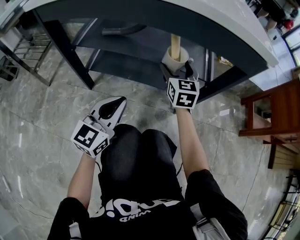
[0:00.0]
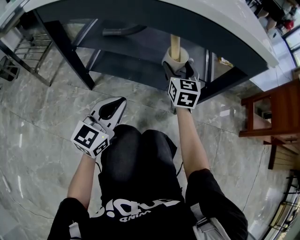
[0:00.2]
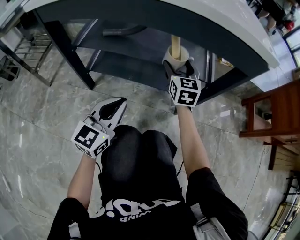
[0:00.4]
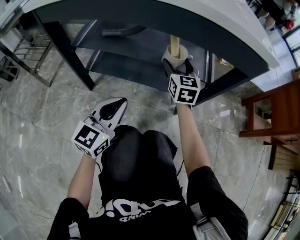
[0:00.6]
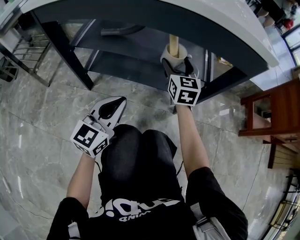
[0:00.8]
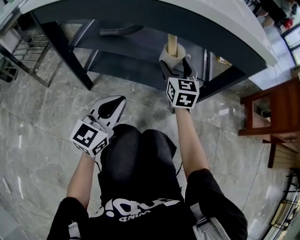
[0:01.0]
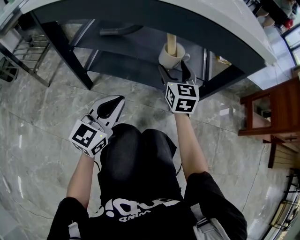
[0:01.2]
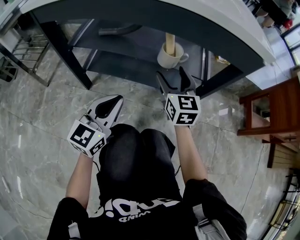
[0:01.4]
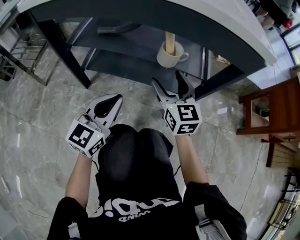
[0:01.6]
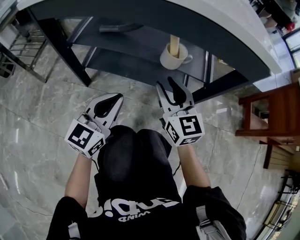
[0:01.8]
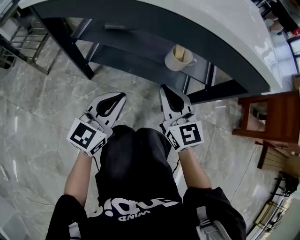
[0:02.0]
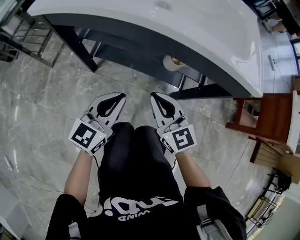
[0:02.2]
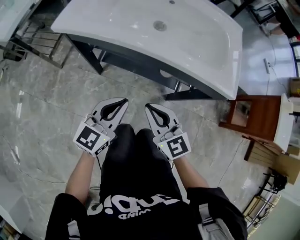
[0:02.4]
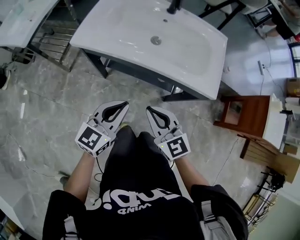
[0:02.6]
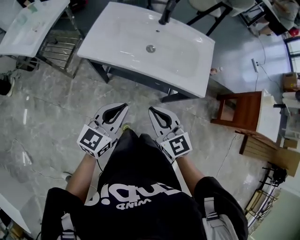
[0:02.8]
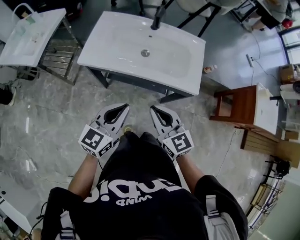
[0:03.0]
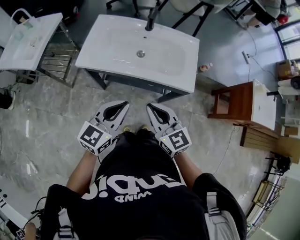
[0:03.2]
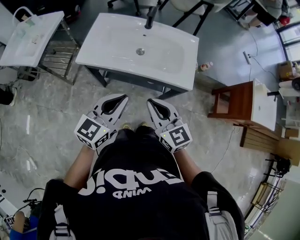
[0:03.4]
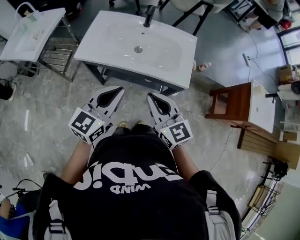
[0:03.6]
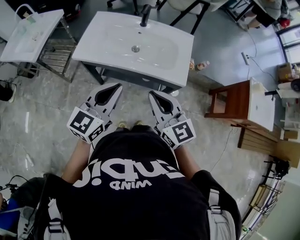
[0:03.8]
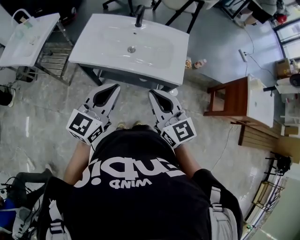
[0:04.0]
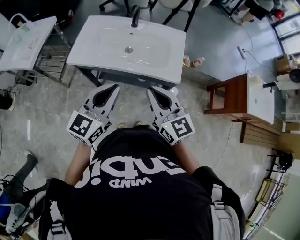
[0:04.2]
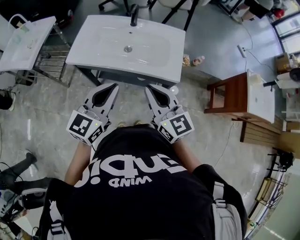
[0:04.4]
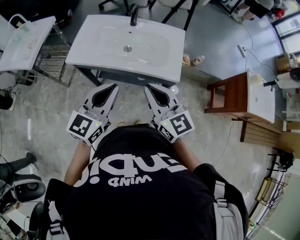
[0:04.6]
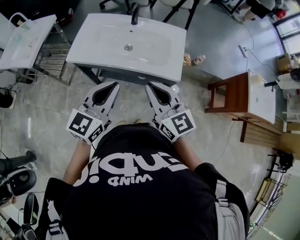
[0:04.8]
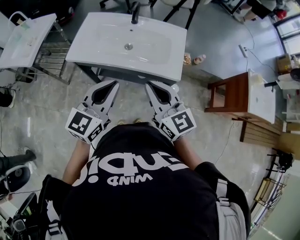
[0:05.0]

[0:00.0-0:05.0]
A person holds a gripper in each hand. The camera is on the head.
0:00.0 to 0:01.6: The right gripper moves backward, roughly 10 cm.
0:01.6 to 0:03.4: Both grippers move upward, approximately 50 cm. The right gripper closes its fingers.
0:03.4 to 0:05.0: The left gripper changes place by some 5 cm. The right gripper shifts roughly 10 cm to the right and upward.

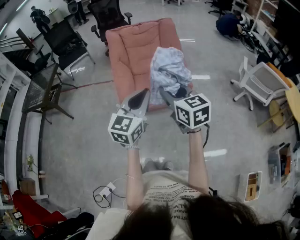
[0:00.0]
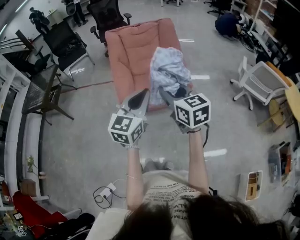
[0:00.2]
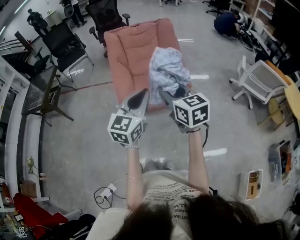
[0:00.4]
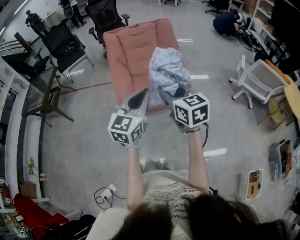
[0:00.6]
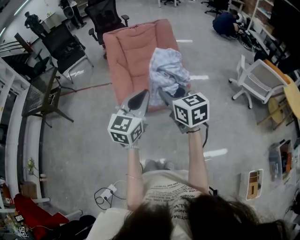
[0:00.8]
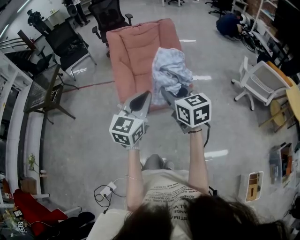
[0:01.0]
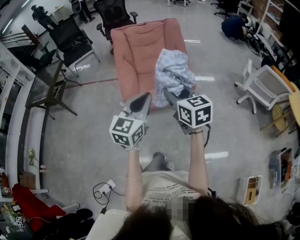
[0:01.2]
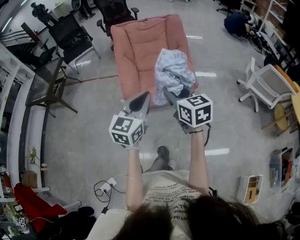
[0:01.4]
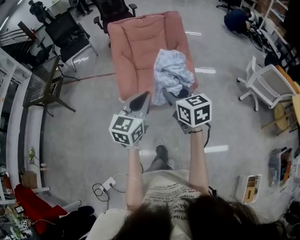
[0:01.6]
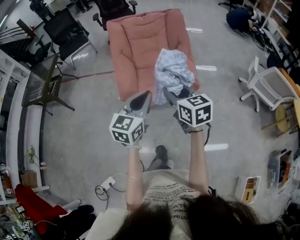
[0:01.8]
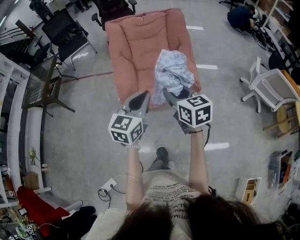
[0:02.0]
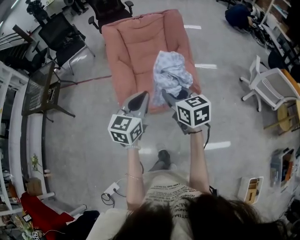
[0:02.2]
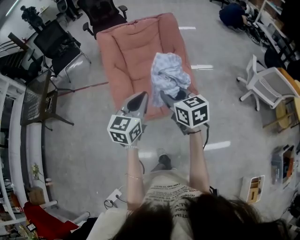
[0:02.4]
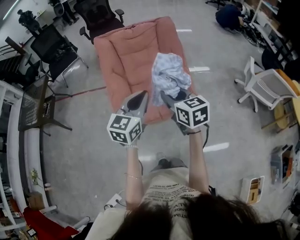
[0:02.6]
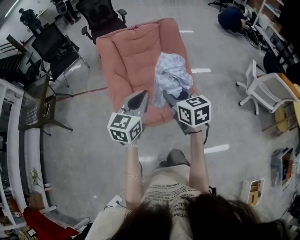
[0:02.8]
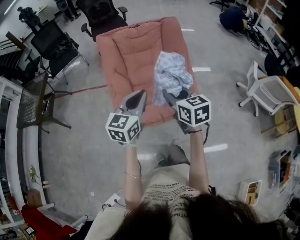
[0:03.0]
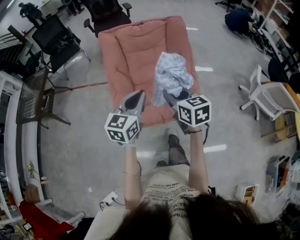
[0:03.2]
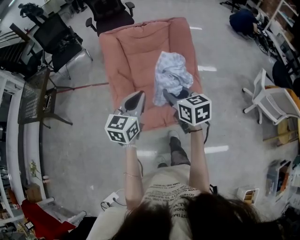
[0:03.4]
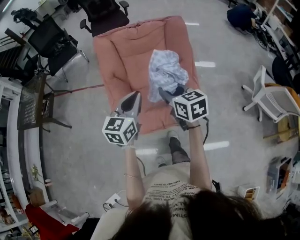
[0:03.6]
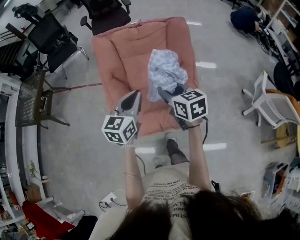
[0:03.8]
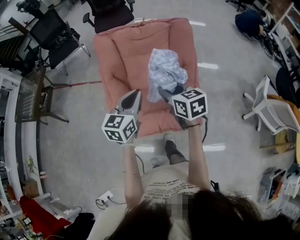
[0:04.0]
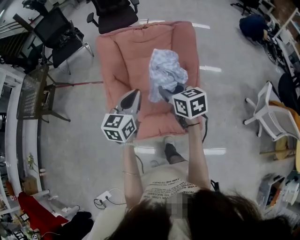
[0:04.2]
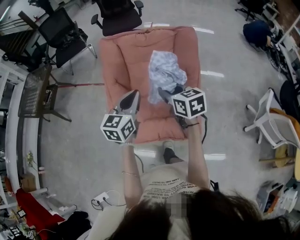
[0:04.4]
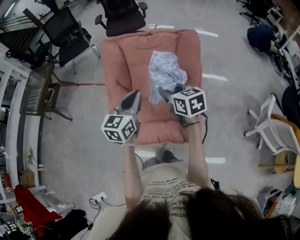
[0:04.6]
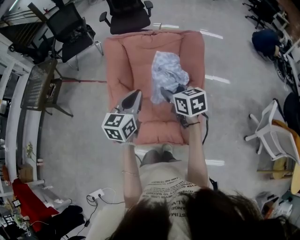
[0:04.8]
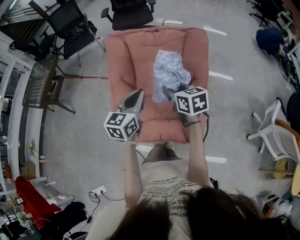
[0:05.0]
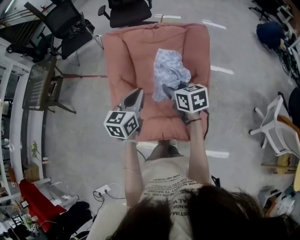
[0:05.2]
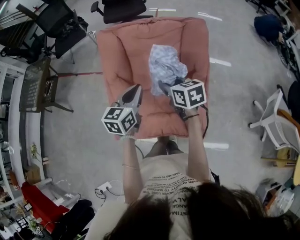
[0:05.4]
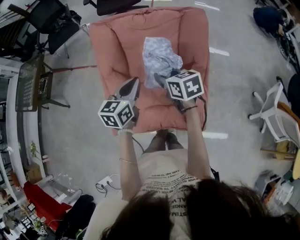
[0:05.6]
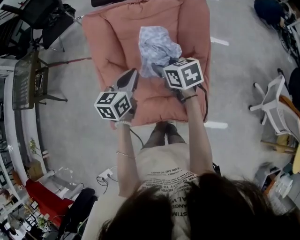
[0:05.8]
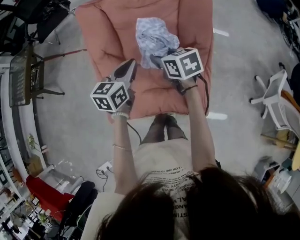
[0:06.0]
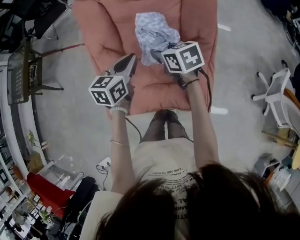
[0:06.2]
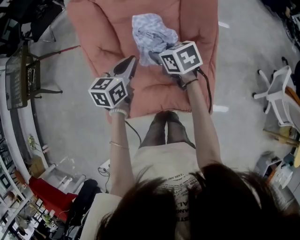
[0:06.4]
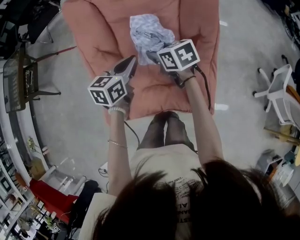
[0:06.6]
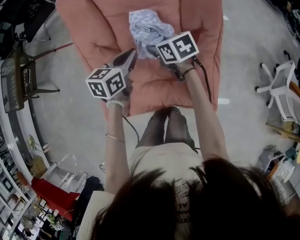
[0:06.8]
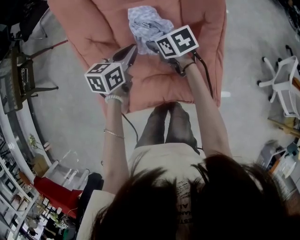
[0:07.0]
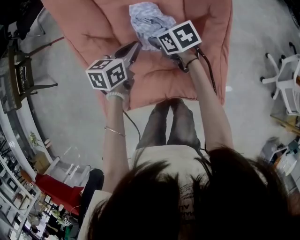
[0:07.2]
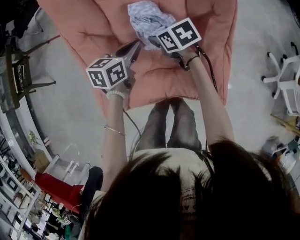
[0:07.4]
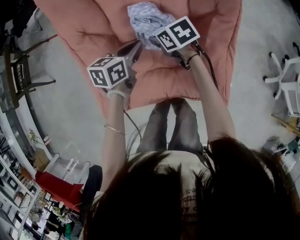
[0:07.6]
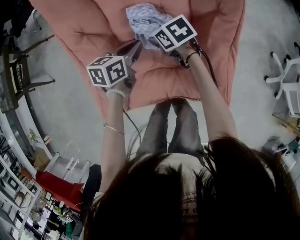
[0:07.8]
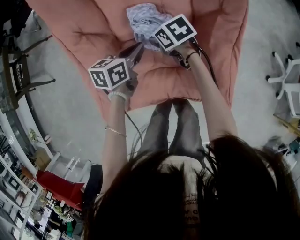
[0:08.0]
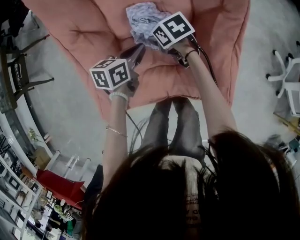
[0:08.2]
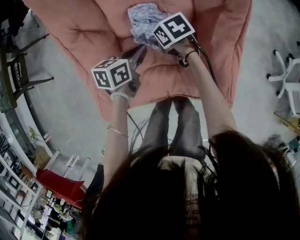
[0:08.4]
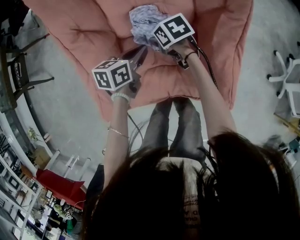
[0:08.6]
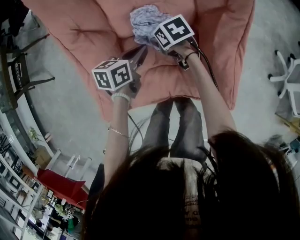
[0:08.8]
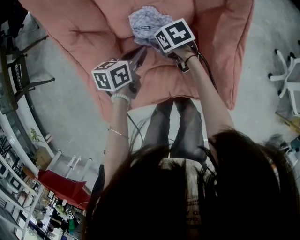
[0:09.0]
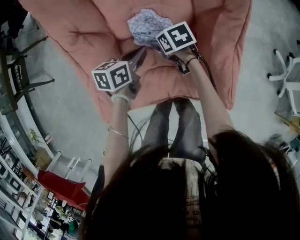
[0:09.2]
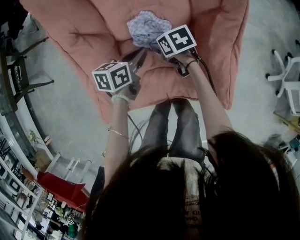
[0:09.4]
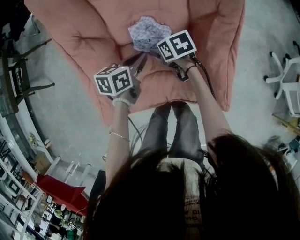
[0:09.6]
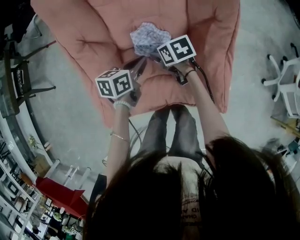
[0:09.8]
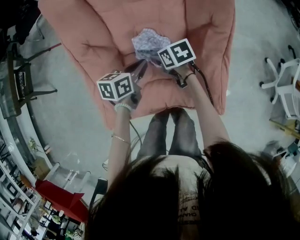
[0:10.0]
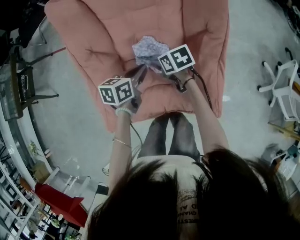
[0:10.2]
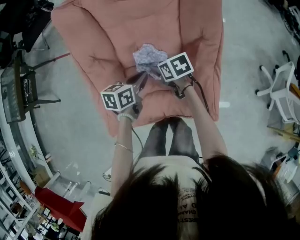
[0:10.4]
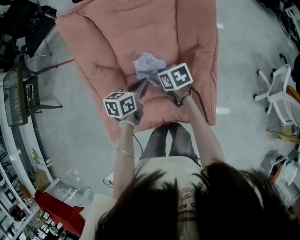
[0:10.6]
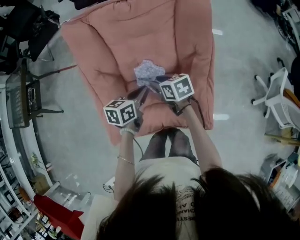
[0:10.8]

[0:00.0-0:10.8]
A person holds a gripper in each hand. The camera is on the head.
0:00.0 to 0:01.6: The right gripper changes place by some 5 cm; the left gripper changes place by some 5 cm.
0:01.6 to 0:03.0: Both grippers move forward, roughly 20 cm.
0:03.0 to 0:04.6: The grippers both shift forward by approximately 20 cm.
0:04.6 to 0:06.2: Both grippers move downward and forward, approximately 20 cm.
0:06.2 to 0:07.8: Both grippers move downward, approximately 20 cm.
0:07.8 to 0:09.2: The right gripper is displaced downward by roughly 5 cm, and opens its fingers; the left gripper moves roughly 5 cm.
0:09.2 to 0:10.8: Both grippers move upward, some 15 cm. The right gripper closes.

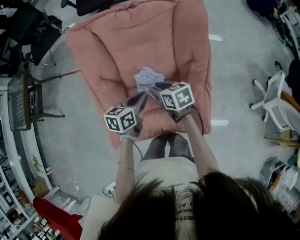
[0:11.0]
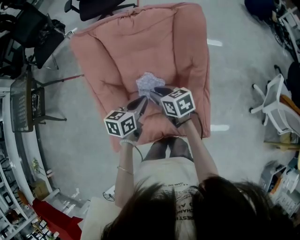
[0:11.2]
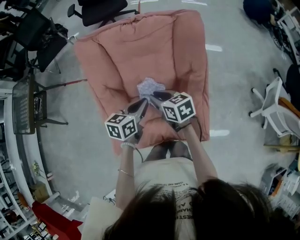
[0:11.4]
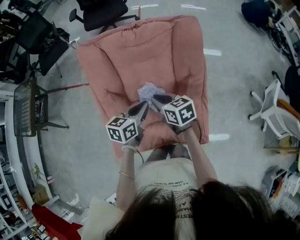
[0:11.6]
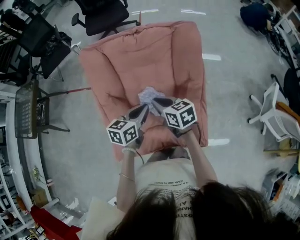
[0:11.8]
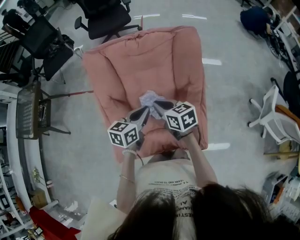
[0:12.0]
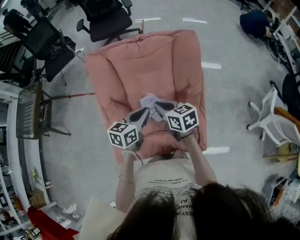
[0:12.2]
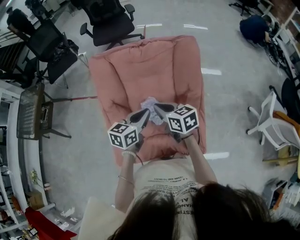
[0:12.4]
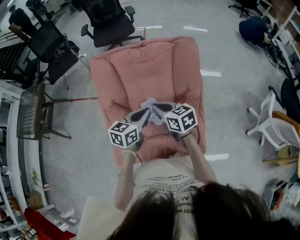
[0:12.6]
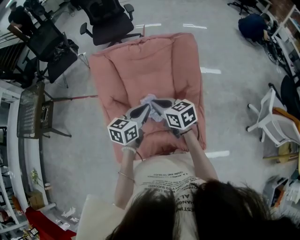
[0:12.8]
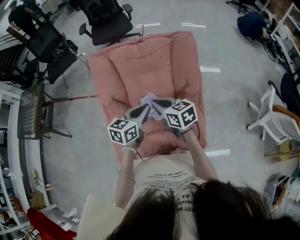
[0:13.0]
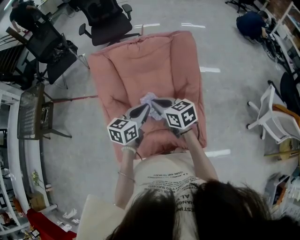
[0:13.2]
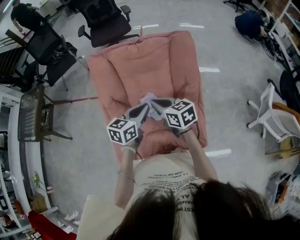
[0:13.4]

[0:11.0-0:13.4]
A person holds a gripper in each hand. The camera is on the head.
0:11.0 to 0:12.2: Both grippers travel together upward, about 10 cm. The right gripper closes.
0:12.2 to 0:13.4: The grippers make only small movements.

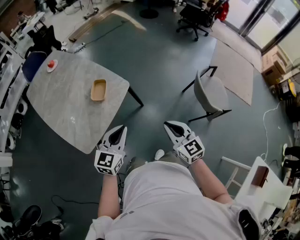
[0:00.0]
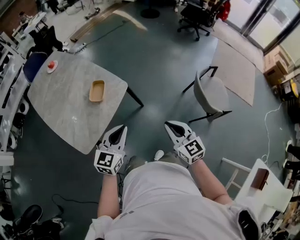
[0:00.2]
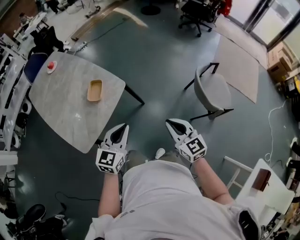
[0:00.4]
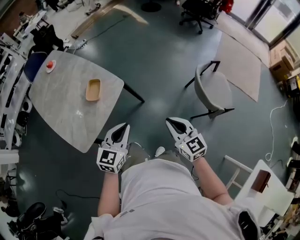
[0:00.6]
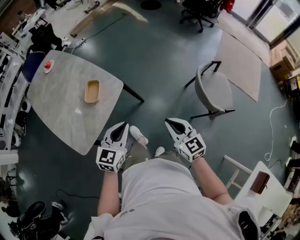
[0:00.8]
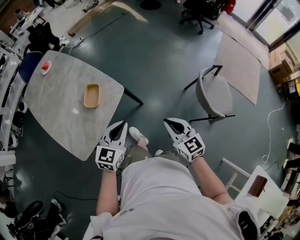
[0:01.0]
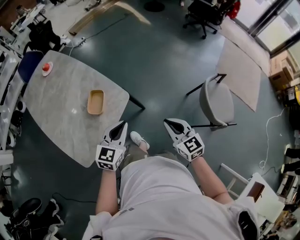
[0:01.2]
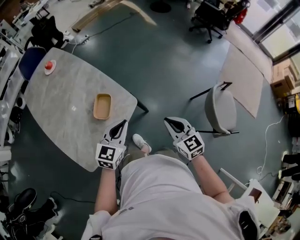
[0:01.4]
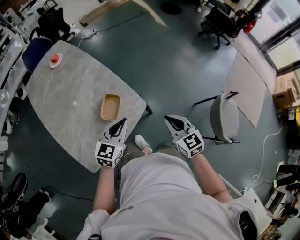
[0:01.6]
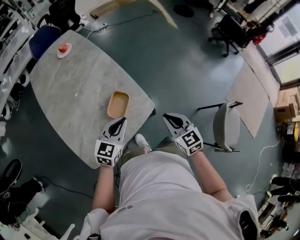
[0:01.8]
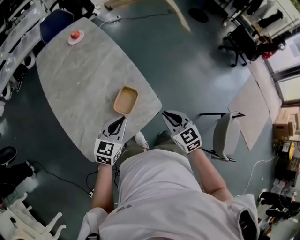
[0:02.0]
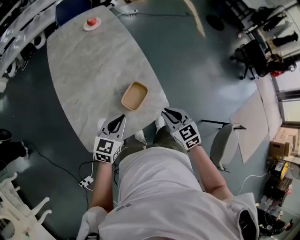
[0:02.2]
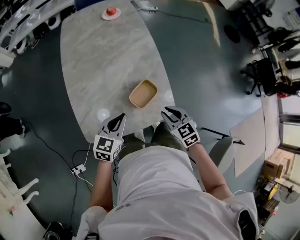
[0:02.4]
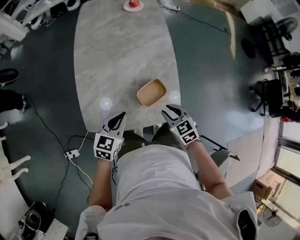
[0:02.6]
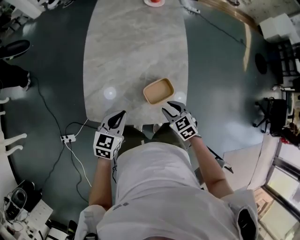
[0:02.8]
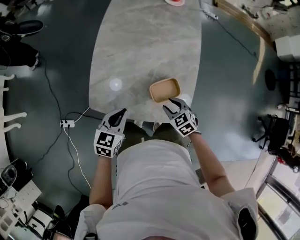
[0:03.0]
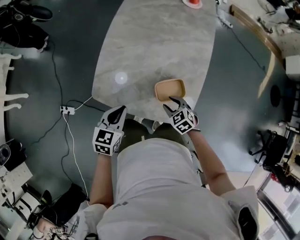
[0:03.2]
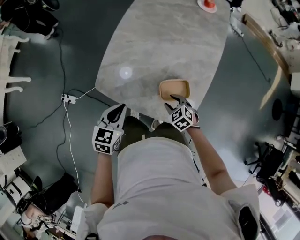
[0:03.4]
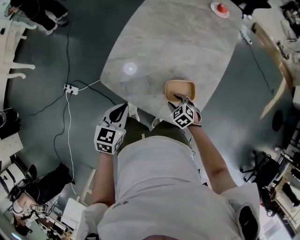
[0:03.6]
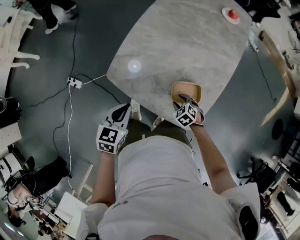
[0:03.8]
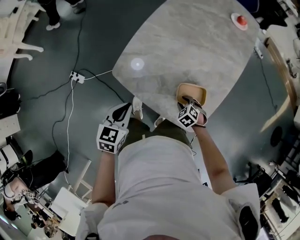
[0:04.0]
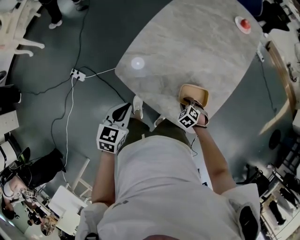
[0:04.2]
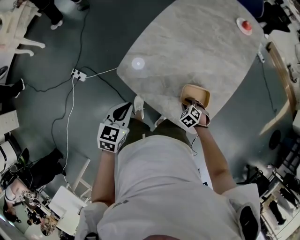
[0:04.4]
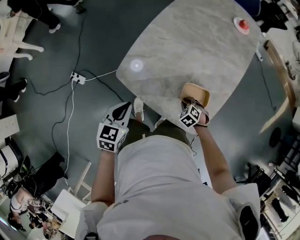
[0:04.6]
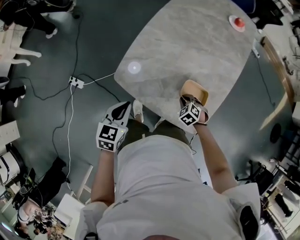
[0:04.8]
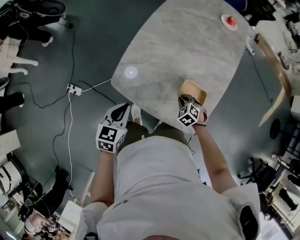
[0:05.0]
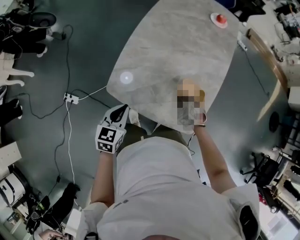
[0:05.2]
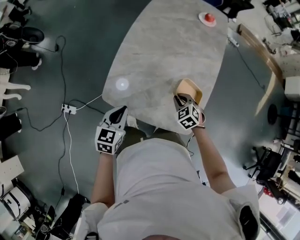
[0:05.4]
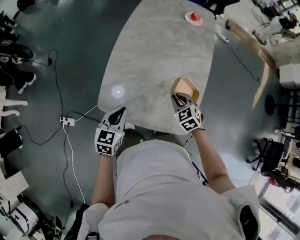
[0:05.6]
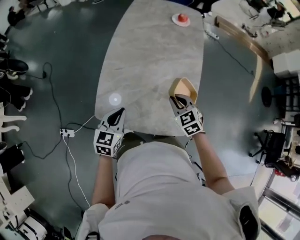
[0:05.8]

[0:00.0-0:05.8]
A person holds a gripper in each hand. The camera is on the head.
0:00.0 to 0:01.4: The grippers both shift forward by roughly 20 cm.
0:01.4 to 0:02.8: The right gripper shifts by about 35 cm, rotates roughly 60 degrees, and opens. The left gripper changes place by approximately 25 cm, and changes its angle by roughly 50 degrees.
0:02.8 to 0:04.4: The right gripper shifts about 15 cm downward, and twists roughly 40 degrees counterclockwise, seen from behind. Meanwhile the left gripper shifts by some 15 cm, and rotates roughly 40 degrees.
0:04.4 to 0:05.8: The right gripper moves upward, roughly 25 cm, and points its fingers roughly 30 degrees further upward; the left gripper travels forward and to the right by approximately 15 cm, and turns by roughly 20 degrees.
